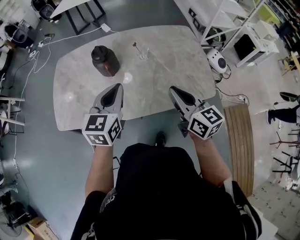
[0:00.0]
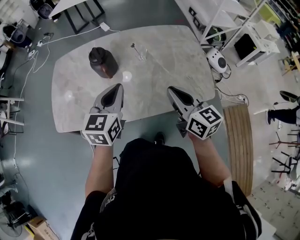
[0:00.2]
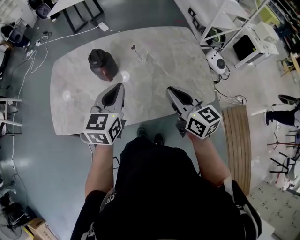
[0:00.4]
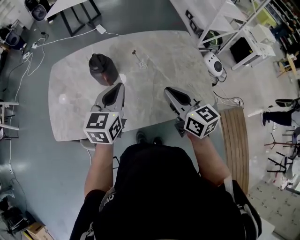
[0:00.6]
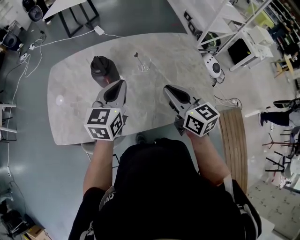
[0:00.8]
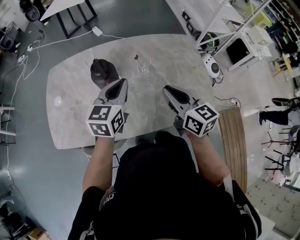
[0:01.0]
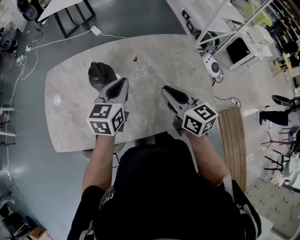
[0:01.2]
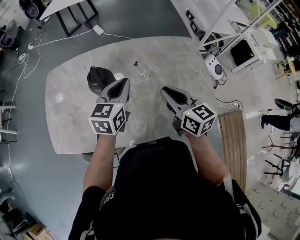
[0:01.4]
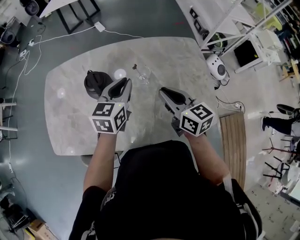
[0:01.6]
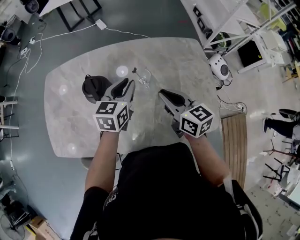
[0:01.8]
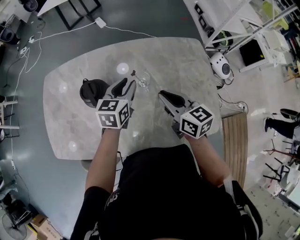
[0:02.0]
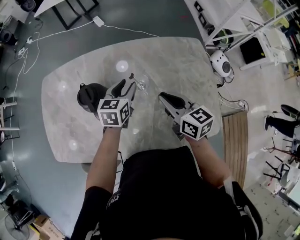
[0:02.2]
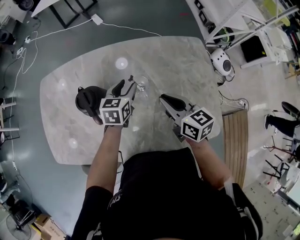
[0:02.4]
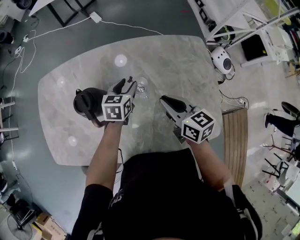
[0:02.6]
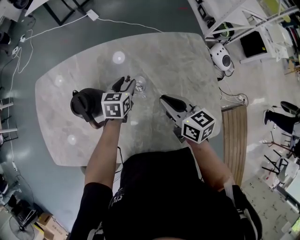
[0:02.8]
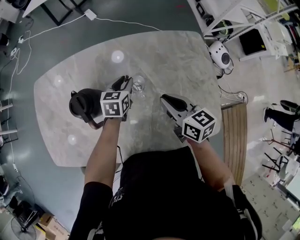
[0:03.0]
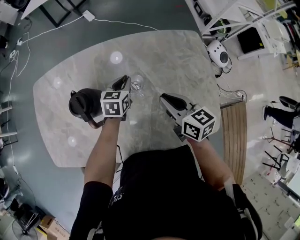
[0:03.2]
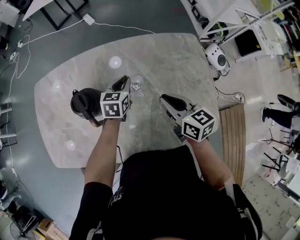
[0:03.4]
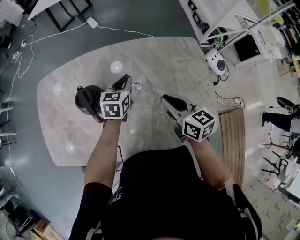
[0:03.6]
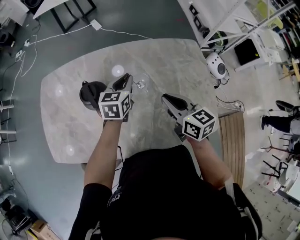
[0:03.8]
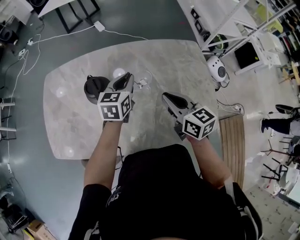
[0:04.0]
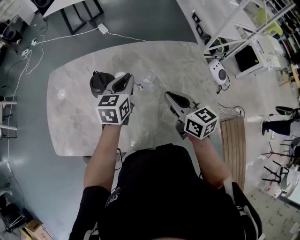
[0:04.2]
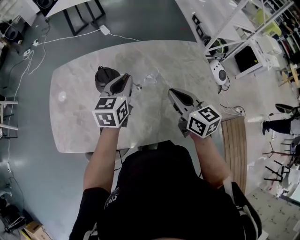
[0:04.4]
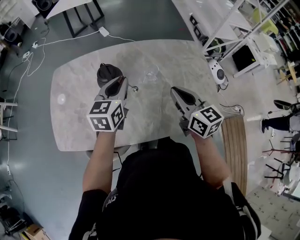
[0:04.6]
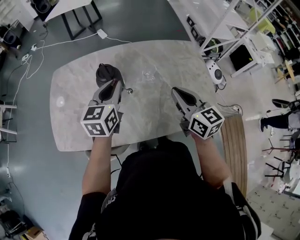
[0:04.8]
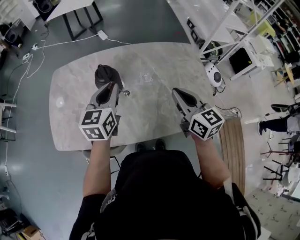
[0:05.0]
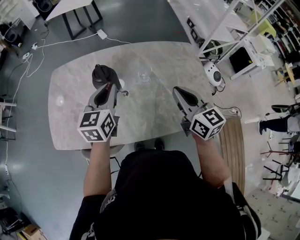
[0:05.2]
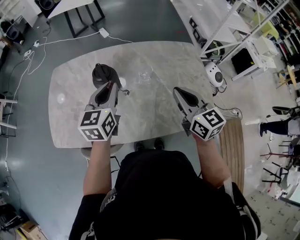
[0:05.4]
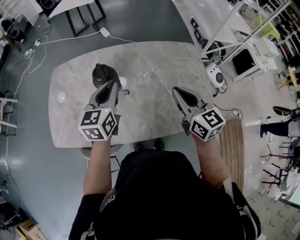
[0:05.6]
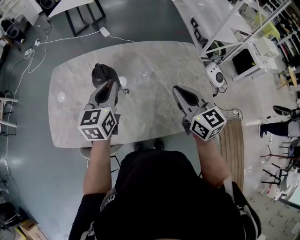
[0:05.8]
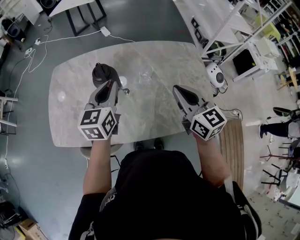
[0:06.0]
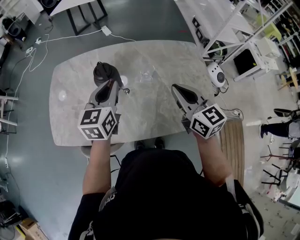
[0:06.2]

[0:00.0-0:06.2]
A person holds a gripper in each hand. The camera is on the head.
0.0 to 1.6 s: Both grippers travel together forward, approximately 20 cm.
1.6 to 3.2 s: The right gripper moves downward and forward, approximately 10 cm; the left gripper moves downward and forward, approximately 20 cm, and opens, then closes again.
3.2 to 4.6 s: The left gripper travels upward, backward and to the left by roughly 25 cm, and rotates about 20 degrees. The right gripper is displaced upward, backward and to the left by approximately 15 cm.
4.6 to 6.2 s: The grippers move only a little.

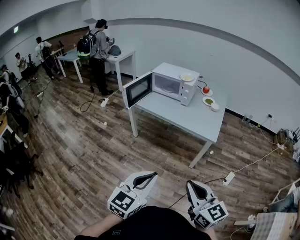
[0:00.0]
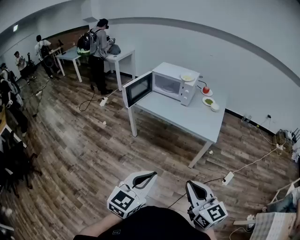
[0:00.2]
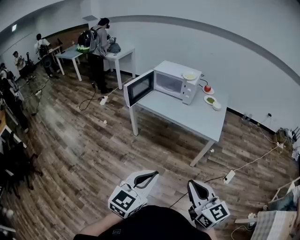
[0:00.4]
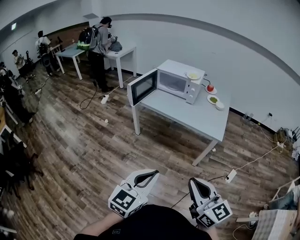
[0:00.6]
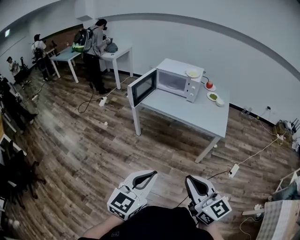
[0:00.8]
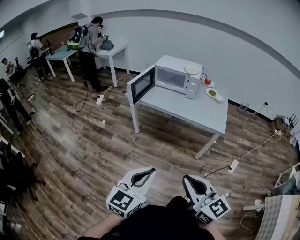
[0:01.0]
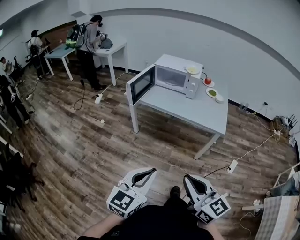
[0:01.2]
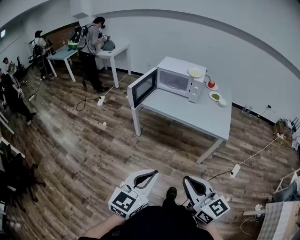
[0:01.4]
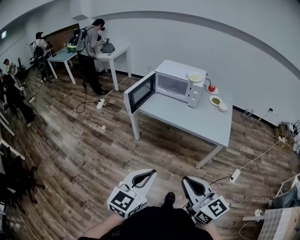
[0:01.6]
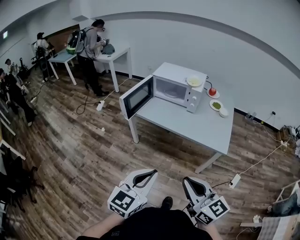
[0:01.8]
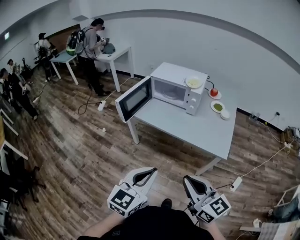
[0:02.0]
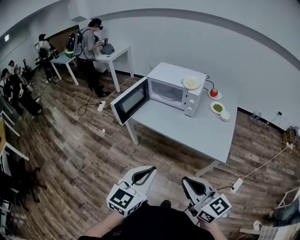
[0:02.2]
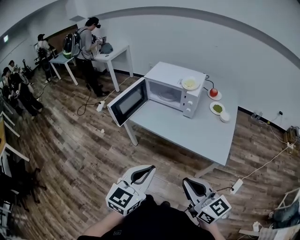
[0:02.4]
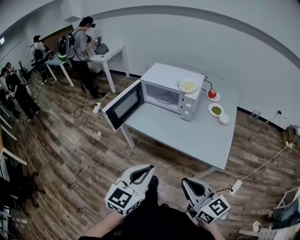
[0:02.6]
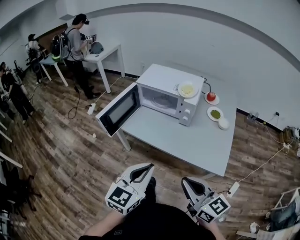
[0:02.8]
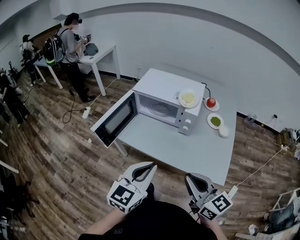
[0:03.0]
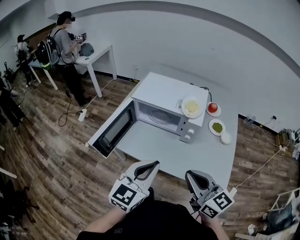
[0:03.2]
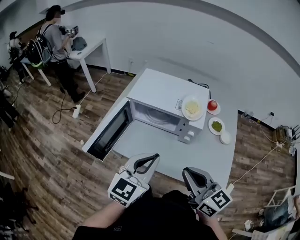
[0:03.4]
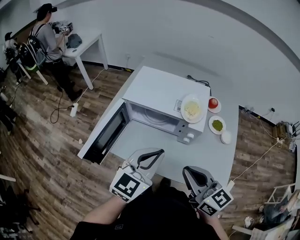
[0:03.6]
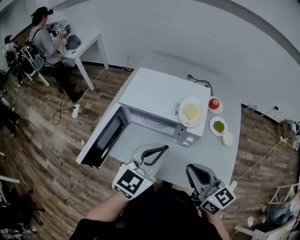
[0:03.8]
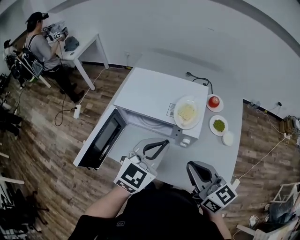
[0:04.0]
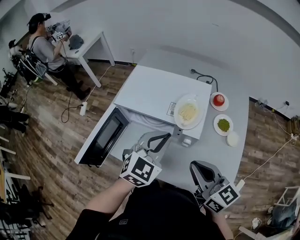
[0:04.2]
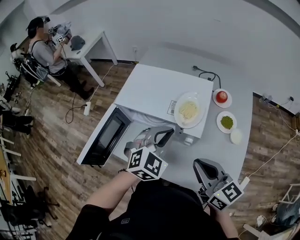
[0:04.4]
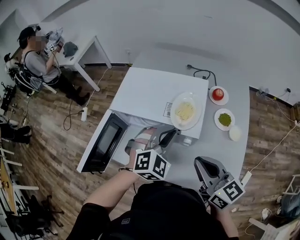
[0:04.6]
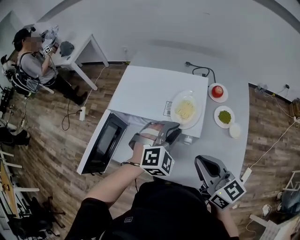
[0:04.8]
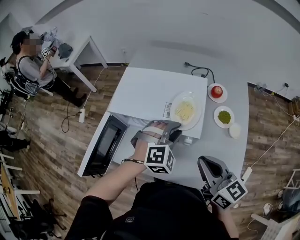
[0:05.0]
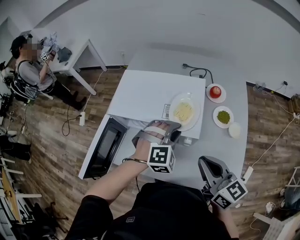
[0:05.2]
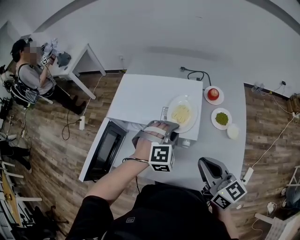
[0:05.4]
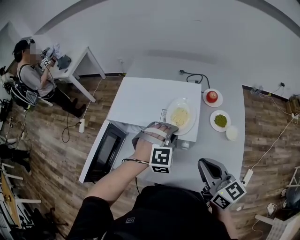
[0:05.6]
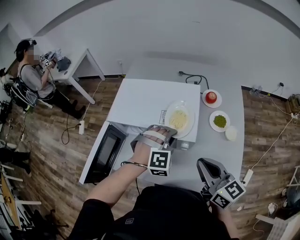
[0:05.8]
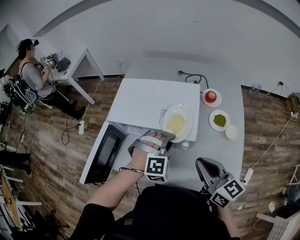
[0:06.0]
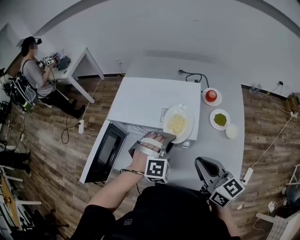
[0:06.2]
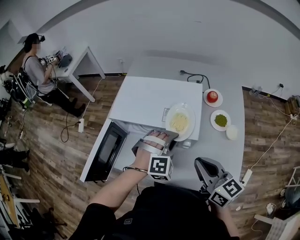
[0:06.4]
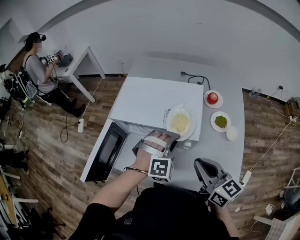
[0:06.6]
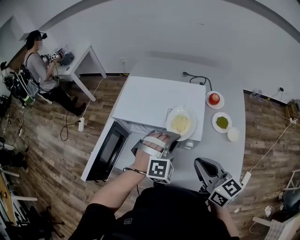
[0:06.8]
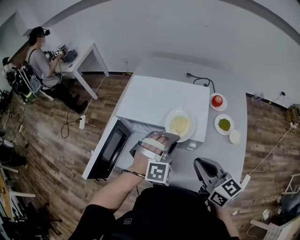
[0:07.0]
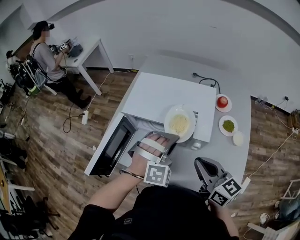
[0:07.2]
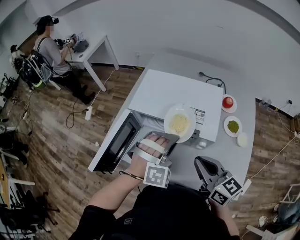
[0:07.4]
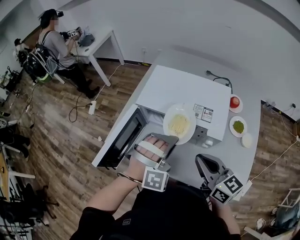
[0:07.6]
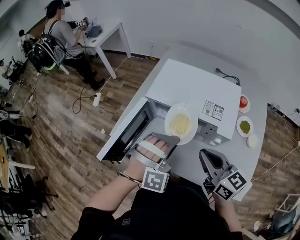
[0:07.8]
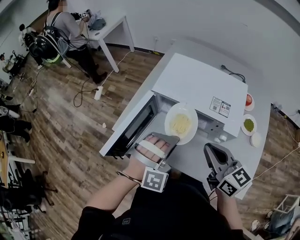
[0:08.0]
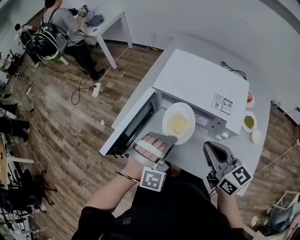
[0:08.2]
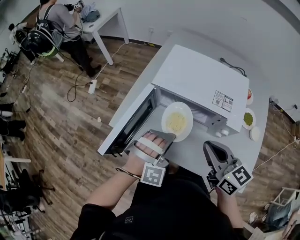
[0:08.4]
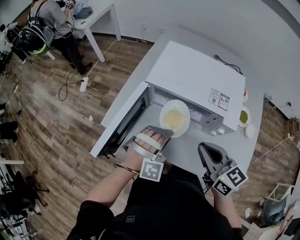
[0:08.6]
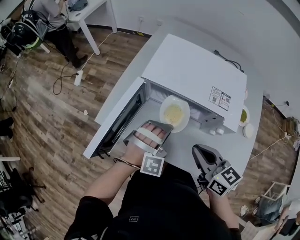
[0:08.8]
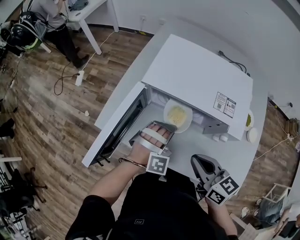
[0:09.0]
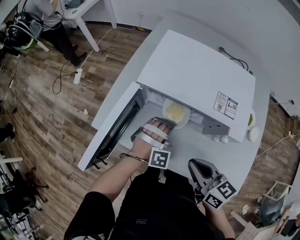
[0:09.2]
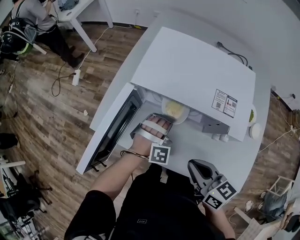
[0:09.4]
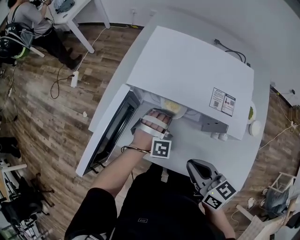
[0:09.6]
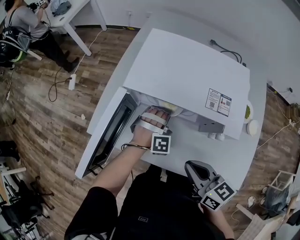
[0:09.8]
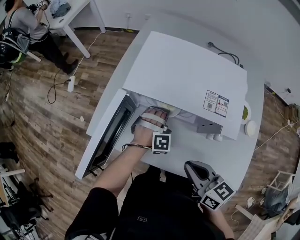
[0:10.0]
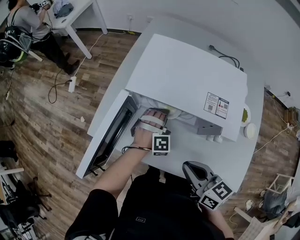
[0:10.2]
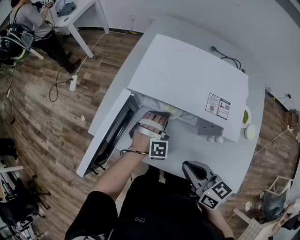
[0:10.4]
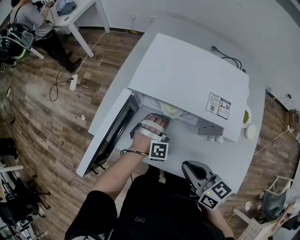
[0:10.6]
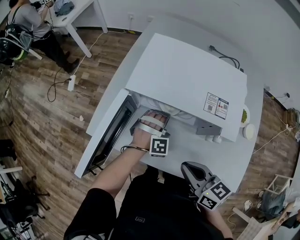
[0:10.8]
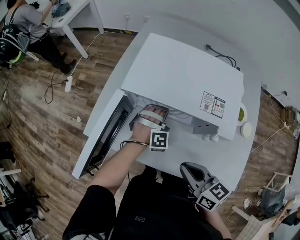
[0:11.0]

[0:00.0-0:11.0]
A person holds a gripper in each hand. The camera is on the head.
0.0 to 1.6 s: The left gripper goes about 20 cm forward and to the left; the right gripper shifts about 20 cm to the left and forward.
1.6 to 3.2 s: Both grippers are carried forward, approximately 40 cm.
3.2 to 4.8 s: Both grippers travel together forward and to the right, roughly 25 cm. The left gripper rotates around the line of its fingers by roughly 50 degrees, clockwise from behind.
6.2 to 7.8 s: The two grippers go about 15 cm to the left.
7.8 to 9.4 s: The left gripper goes roughly 20 cm downward and forward, while the right gripper travels downward by some 10 cm.
9.4 to 11.0 s: The left gripper moves about 5 cm, and opens, then closes once more.

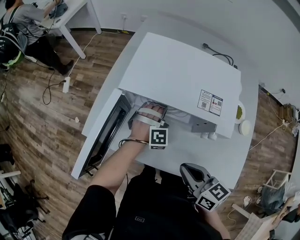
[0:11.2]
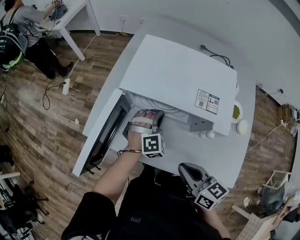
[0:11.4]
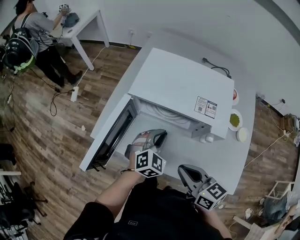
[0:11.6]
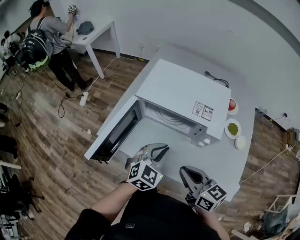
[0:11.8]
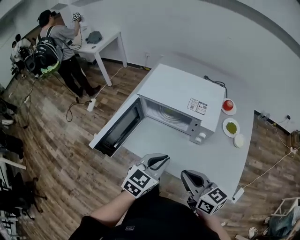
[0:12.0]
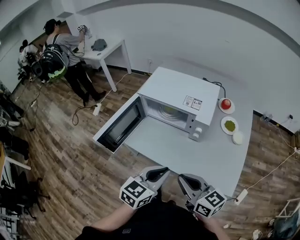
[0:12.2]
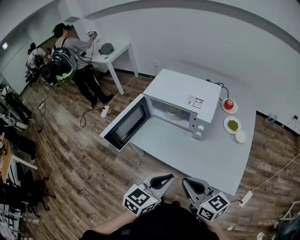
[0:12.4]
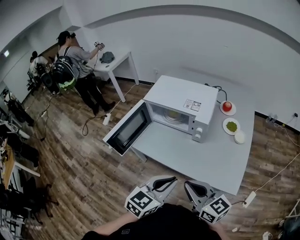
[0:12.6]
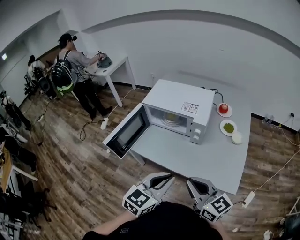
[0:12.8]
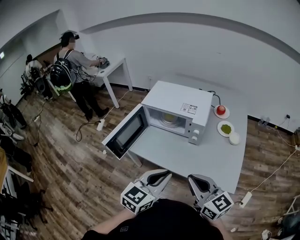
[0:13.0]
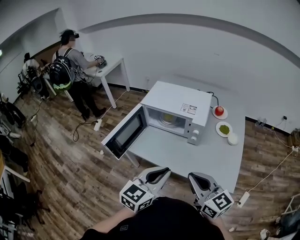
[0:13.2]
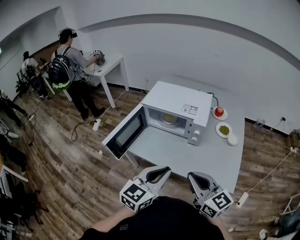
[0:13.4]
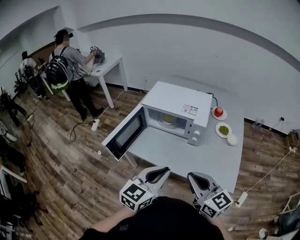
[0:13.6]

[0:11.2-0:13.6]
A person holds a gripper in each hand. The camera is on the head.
11.2 to 12.4 s: The left gripper travels backward and upward by about 50 cm, and twists about 80 degrees counterclockwise, seen from behind. Meanwhile the right gripper travels backward and upward by some 20 cm, and swivels roughly 20 degrees.
12.4 to 13.6 s: The right gripper shifts approximately 5 cm upward; the left gripper travels upward and to the left by about 10 cm.

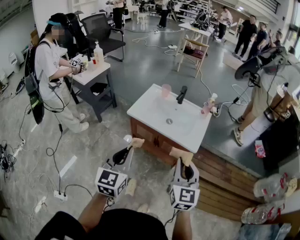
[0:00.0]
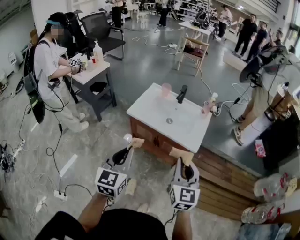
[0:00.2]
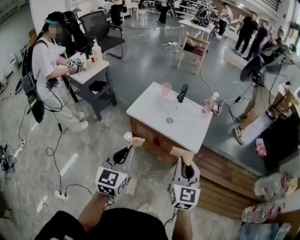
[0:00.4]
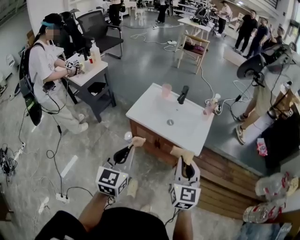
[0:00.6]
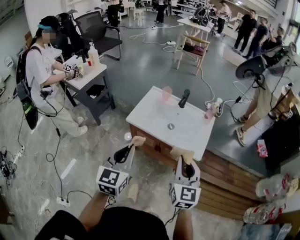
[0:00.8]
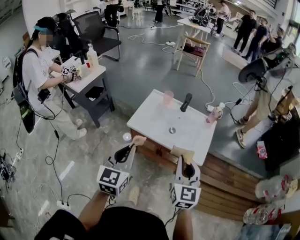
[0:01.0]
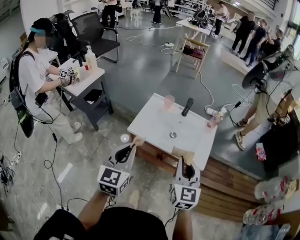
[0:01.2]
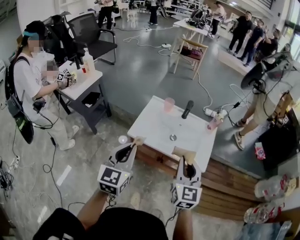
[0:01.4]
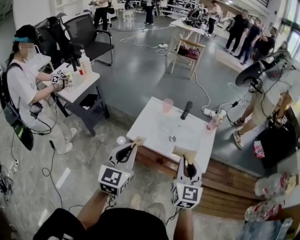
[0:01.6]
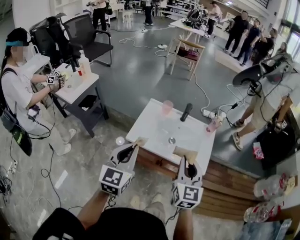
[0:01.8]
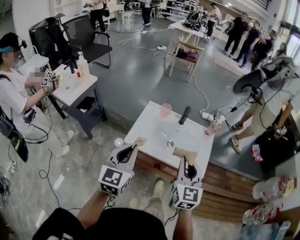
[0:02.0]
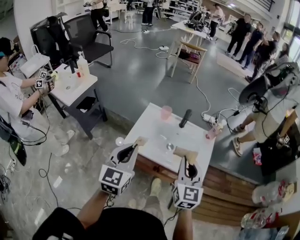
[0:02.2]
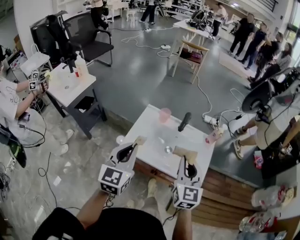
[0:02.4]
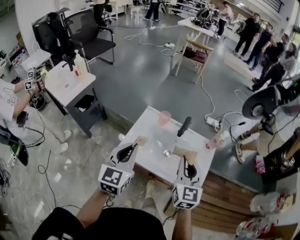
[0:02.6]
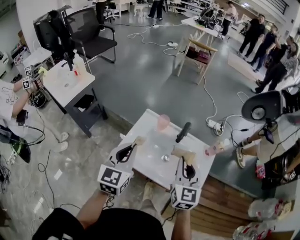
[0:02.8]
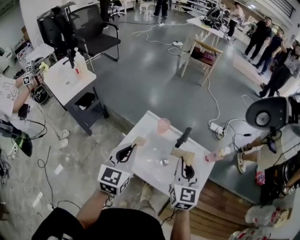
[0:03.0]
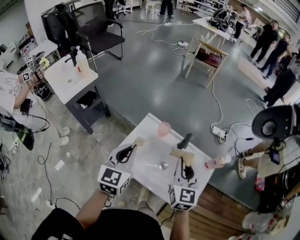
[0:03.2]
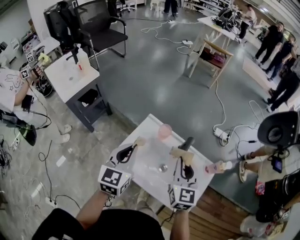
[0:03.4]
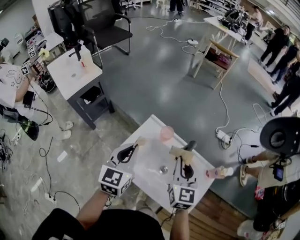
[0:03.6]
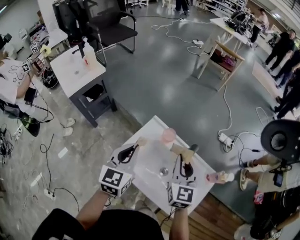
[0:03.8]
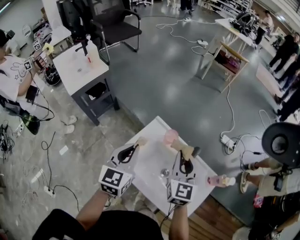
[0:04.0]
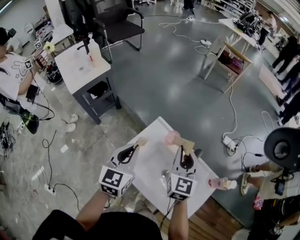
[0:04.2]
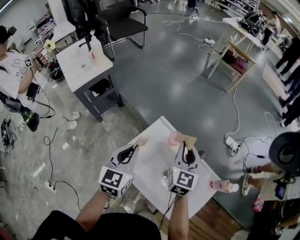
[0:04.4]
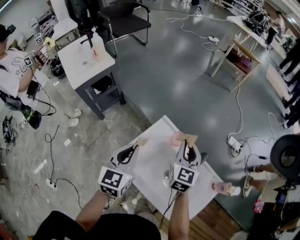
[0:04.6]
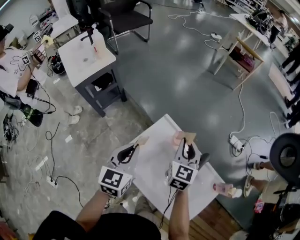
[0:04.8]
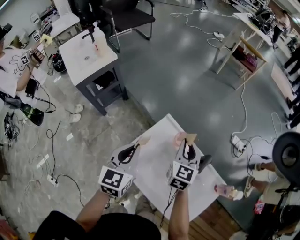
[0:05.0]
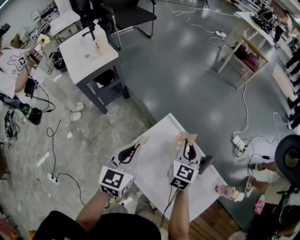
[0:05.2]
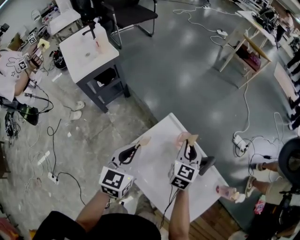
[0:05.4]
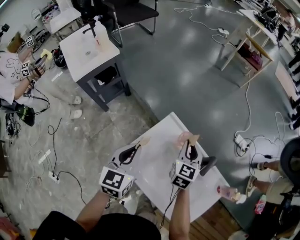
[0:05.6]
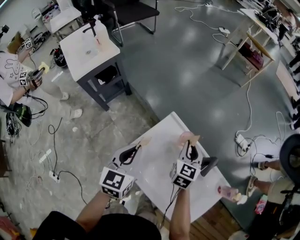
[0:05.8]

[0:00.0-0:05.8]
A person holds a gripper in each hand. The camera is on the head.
0.0 to 1.4 s: The two grippers go about 20 cm forward and to the left.
1.4 to 2.8 s: The two grippers go roughly 20 cm forward.
2.8 to 4.4 s: The right gripper travels forward by approximately 25 cm, while the left gripper moves forward and downward, about 15 cm.
4.4 to 5.8 s: The right gripper heads downward, covering about 15 cm; the left gripper moves downward, approximately 5 cm.
